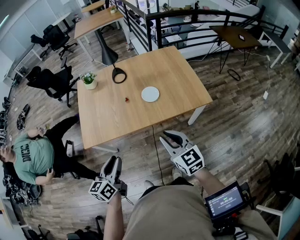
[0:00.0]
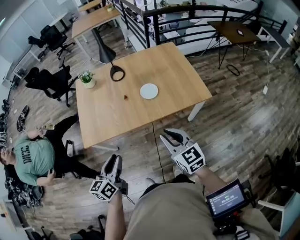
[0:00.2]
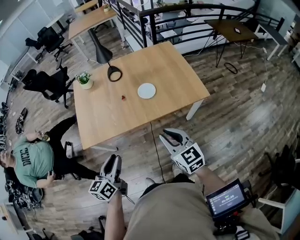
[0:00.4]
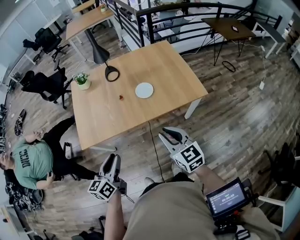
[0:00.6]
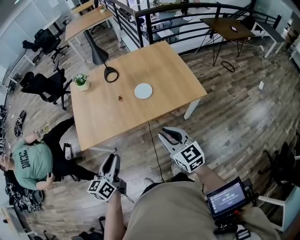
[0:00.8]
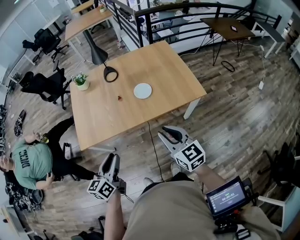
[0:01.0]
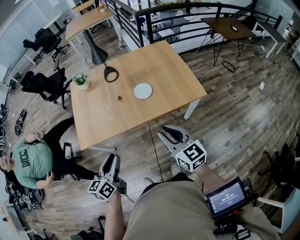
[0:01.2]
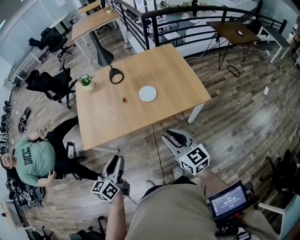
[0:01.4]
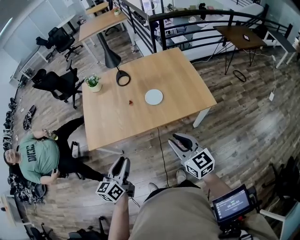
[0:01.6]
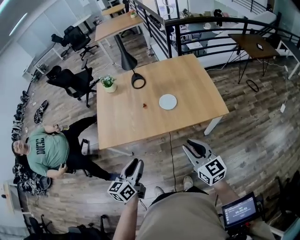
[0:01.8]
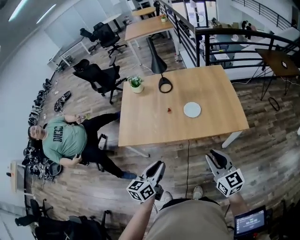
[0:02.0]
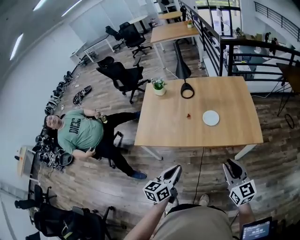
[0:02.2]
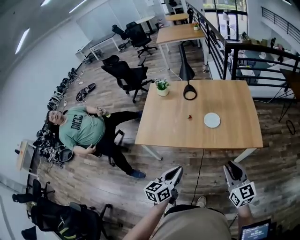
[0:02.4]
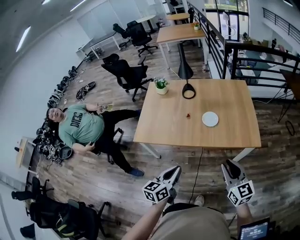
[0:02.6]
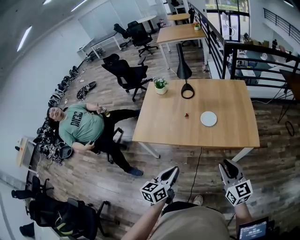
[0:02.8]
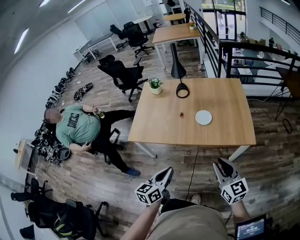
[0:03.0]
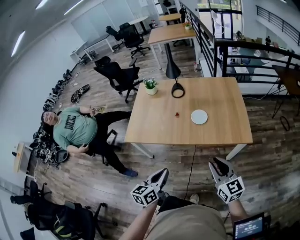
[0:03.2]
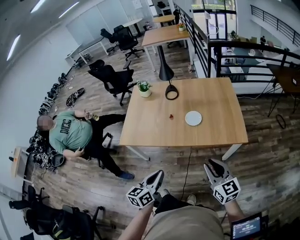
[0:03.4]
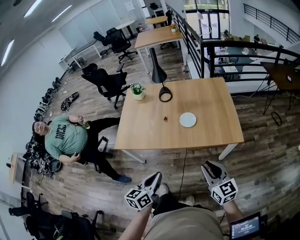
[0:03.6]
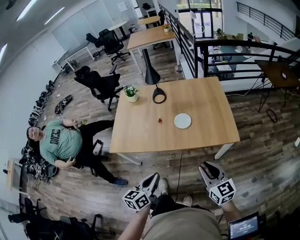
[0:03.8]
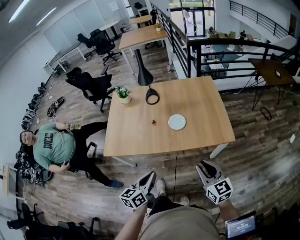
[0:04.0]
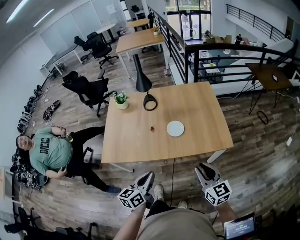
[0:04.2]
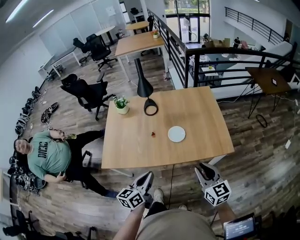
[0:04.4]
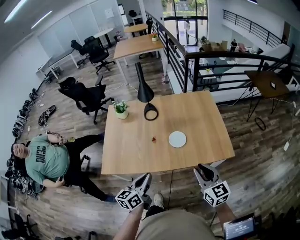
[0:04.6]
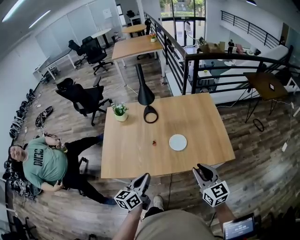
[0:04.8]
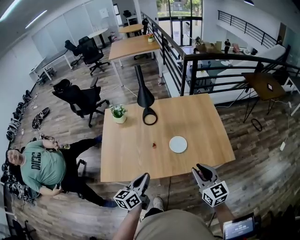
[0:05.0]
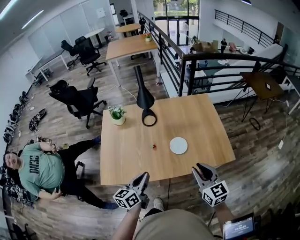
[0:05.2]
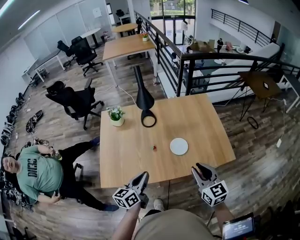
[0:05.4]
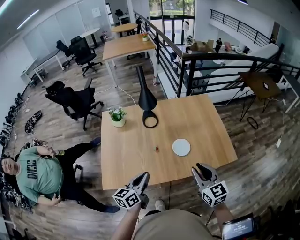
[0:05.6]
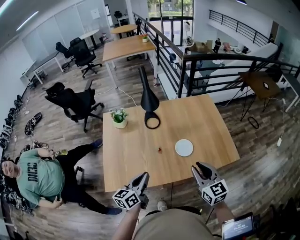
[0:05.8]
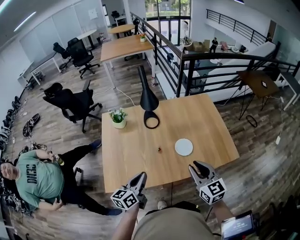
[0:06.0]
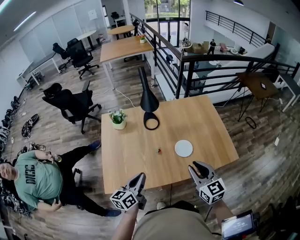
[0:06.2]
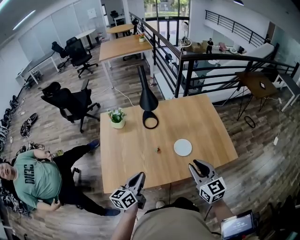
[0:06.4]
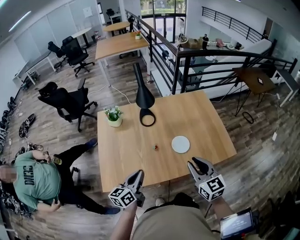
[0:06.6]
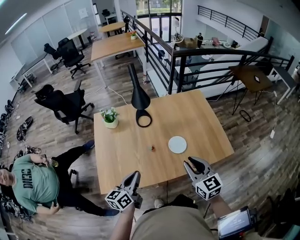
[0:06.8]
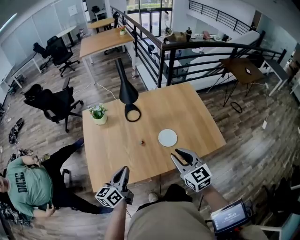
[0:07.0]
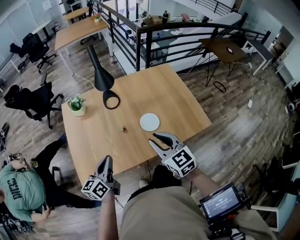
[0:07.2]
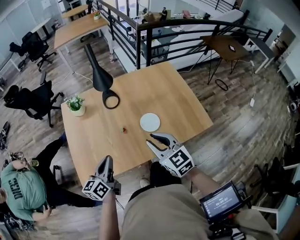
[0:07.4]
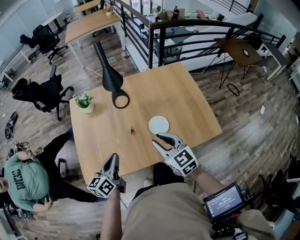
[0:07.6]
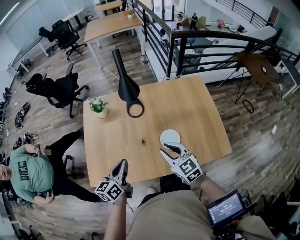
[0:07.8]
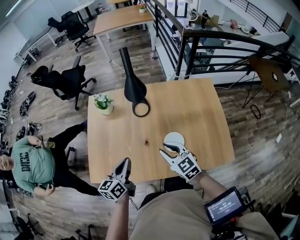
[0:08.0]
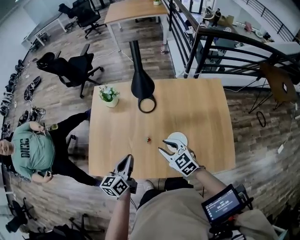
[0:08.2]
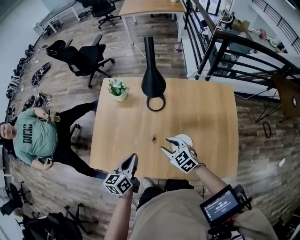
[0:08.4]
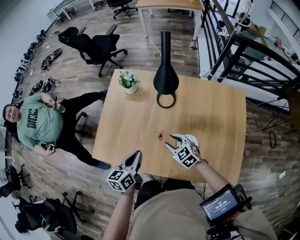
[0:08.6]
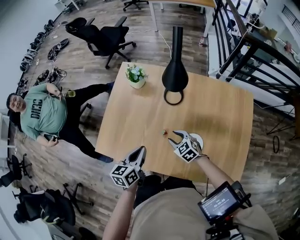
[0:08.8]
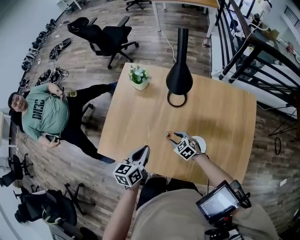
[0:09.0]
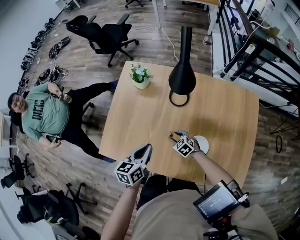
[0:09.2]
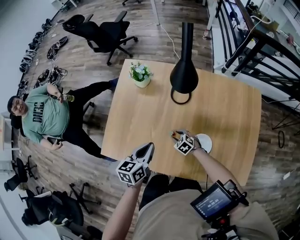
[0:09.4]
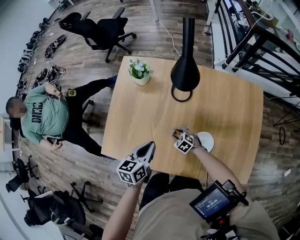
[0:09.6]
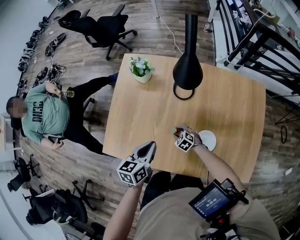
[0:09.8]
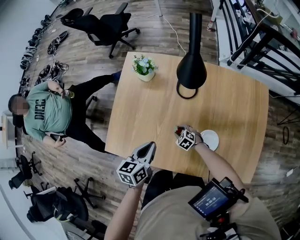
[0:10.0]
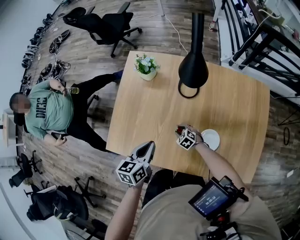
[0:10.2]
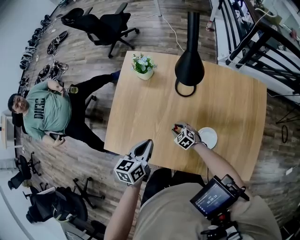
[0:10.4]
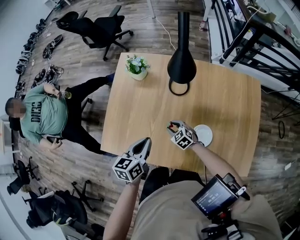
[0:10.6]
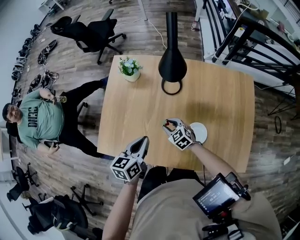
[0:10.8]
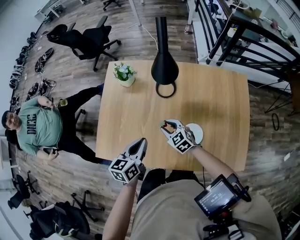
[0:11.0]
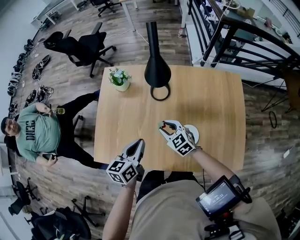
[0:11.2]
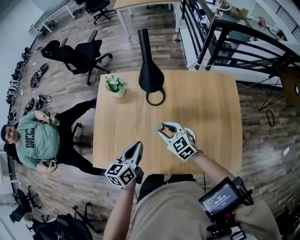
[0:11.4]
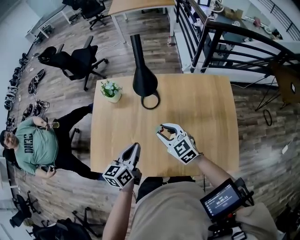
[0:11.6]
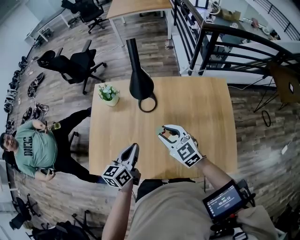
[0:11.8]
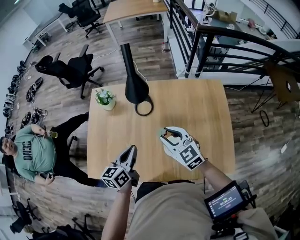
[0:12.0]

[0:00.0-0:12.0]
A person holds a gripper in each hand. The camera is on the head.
0:00.0 to 0:01.6: The left gripper ends up some 5 cm from where it was.
0:01.6 to 0:03.0: The left gripper heads to the right and backward, covering approximately 10 cm, and closes its fingers. Meanwhile the right gripper moves to the right, some 5 cm.
0:03.0 to 0:04.4: Both grippers move forward, approximately 10 cm.
0:04.4 to 0:06.0: The grippers both shift to the left and forward by some 25 cm.
0:06.0 to 0:07.6: The right gripper shifts some 10 cm forward and downward. Meanwhile the left gripper goes roughly 5 cm forward.
0:07.6 to 0:09.0: The right gripper goes approximately 30 cm downward, and swivels about 50 degrees, while the left gripper ends up roughly 10 cm from where it was, and changes its angle by some 30 degrees.
0:09.0 to 0:10.4: The right gripper is displaced downward by about 10 cm.
0:10.4 to 0:12.0: The right gripper shifts about 40 cm upward and to the right, and points its fingers roughly 30 degrees further upward; the left gripper is displaced to the right and upward by roughly 15 cm.

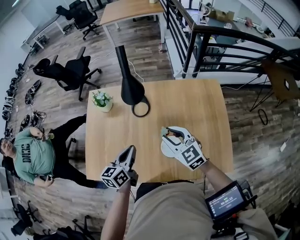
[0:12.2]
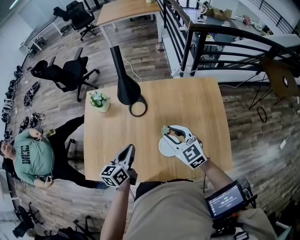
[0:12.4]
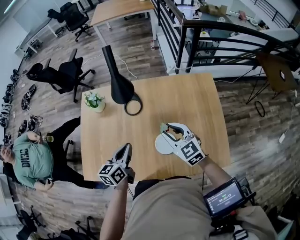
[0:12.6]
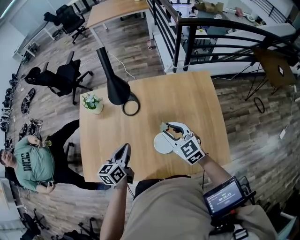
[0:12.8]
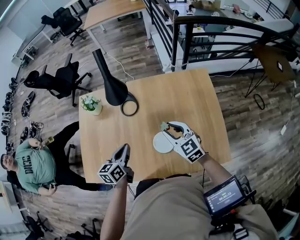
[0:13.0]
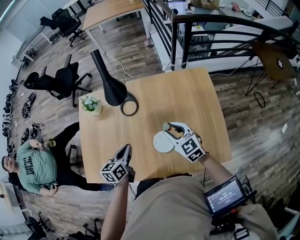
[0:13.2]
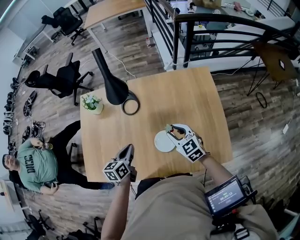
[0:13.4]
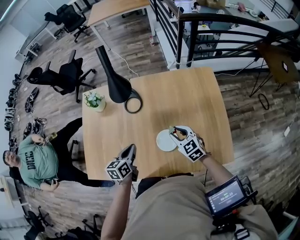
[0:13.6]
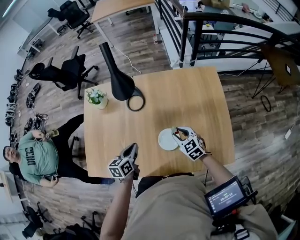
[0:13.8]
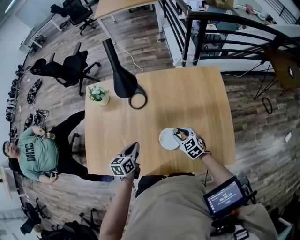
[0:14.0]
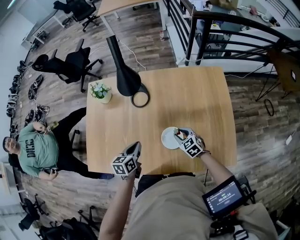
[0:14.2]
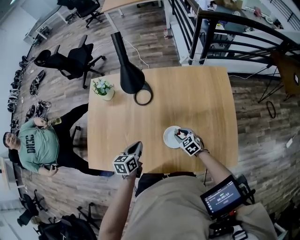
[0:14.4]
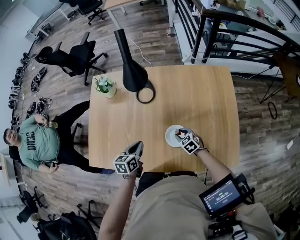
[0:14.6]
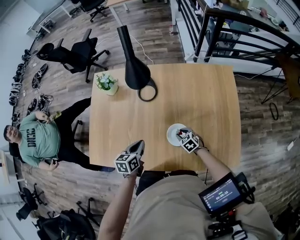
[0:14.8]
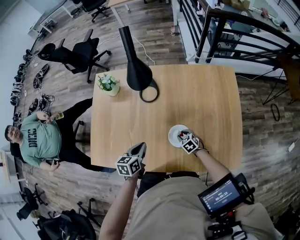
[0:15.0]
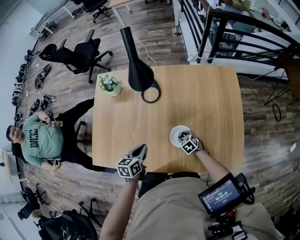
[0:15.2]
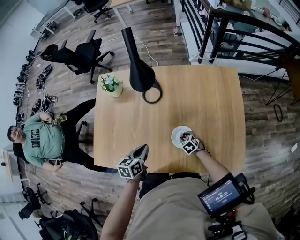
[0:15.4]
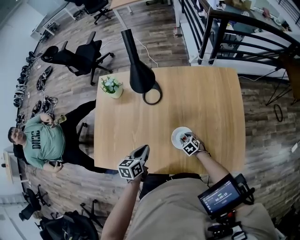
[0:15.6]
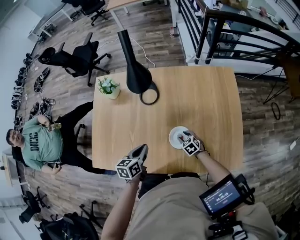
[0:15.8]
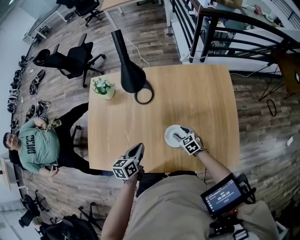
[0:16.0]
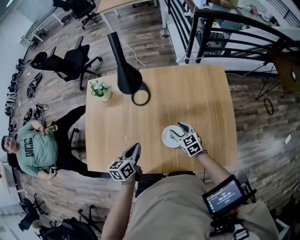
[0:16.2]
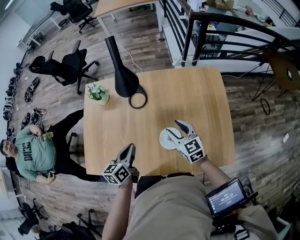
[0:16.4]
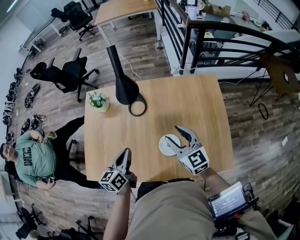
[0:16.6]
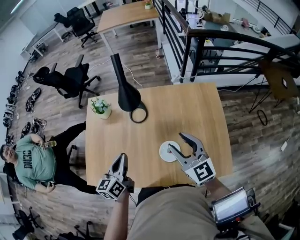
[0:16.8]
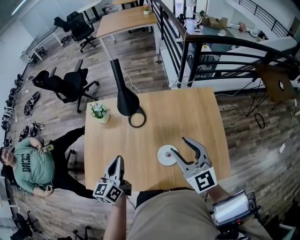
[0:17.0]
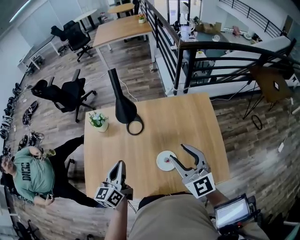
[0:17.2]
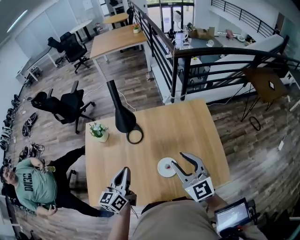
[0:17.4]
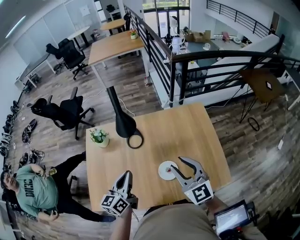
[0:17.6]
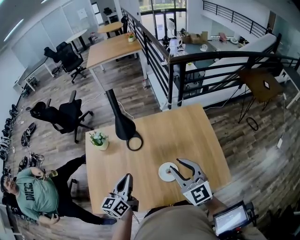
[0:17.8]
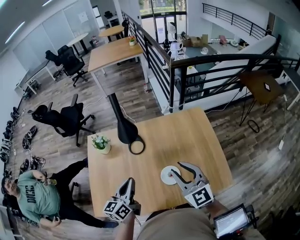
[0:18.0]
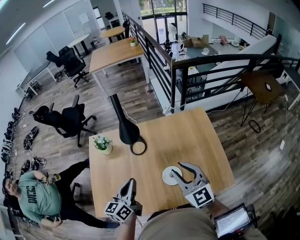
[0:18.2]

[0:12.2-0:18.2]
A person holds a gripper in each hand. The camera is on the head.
0:12.2 to 0:13.8: The right gripper moves downward and to the right, about 20 cm; the left gripper is displaced downward by about 10 cm.
0:13.8 to 0:15.2: The left gripper ends up about 5 cm from where it was; the right gripper travels downward by some 20 cm, and rotates approximately 20 degrees.
0:15.2 to 0:16.6: The right gripper goes roughly 35 cm upward, and points its fingers approximately 50 degrees further upward; the left gripper goes roughly 15 cm upward, and rotates some 20 degrees.
0:16.6 to 0:18.2: The left gripper shifts some 10 cm upward, while the right gripper goes about 15 cm upward and backward.

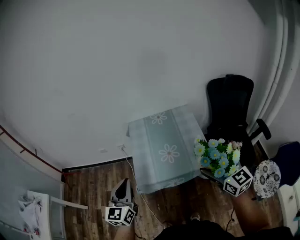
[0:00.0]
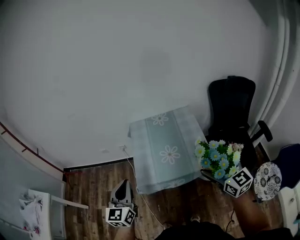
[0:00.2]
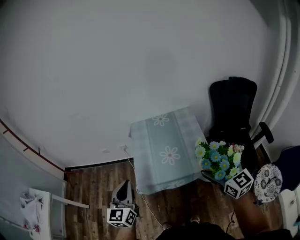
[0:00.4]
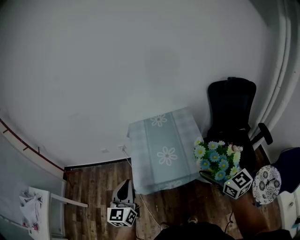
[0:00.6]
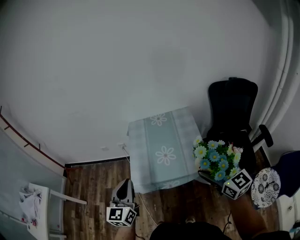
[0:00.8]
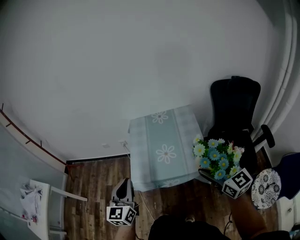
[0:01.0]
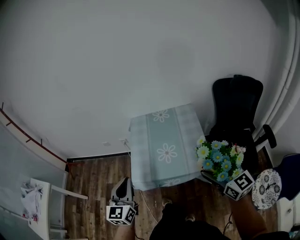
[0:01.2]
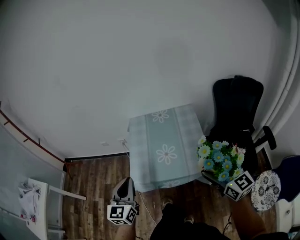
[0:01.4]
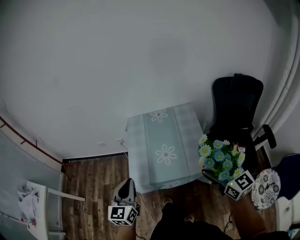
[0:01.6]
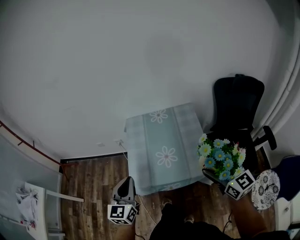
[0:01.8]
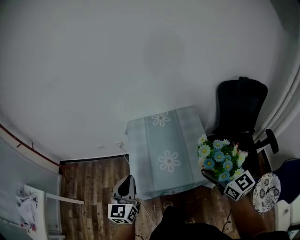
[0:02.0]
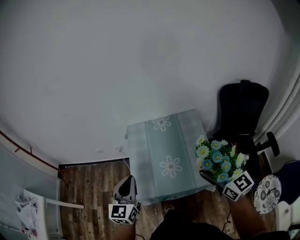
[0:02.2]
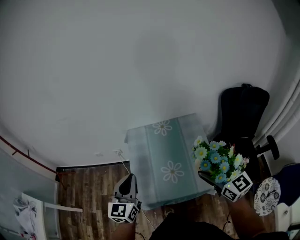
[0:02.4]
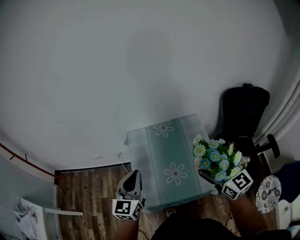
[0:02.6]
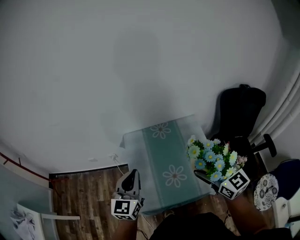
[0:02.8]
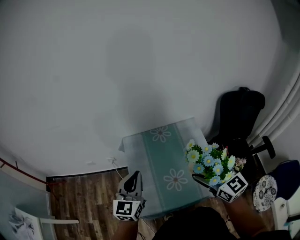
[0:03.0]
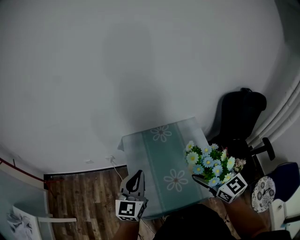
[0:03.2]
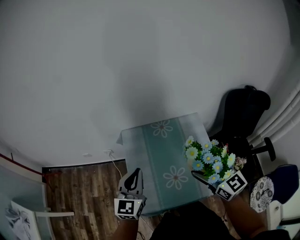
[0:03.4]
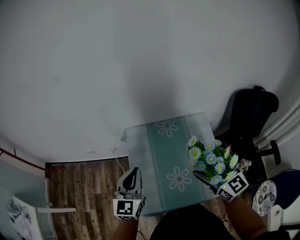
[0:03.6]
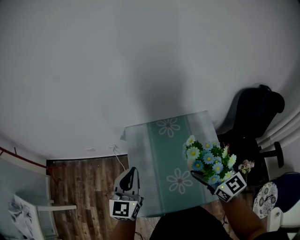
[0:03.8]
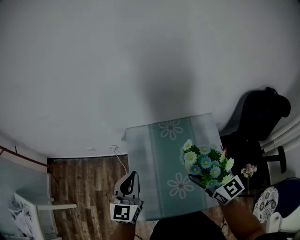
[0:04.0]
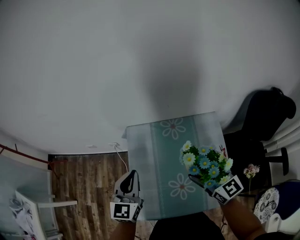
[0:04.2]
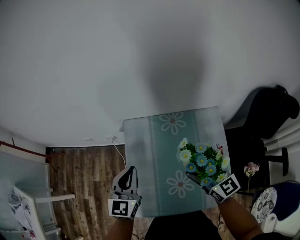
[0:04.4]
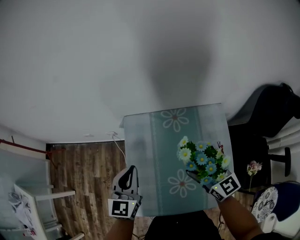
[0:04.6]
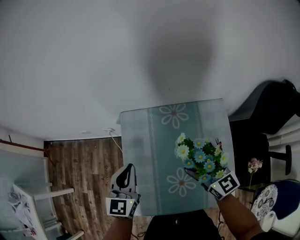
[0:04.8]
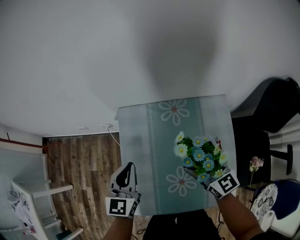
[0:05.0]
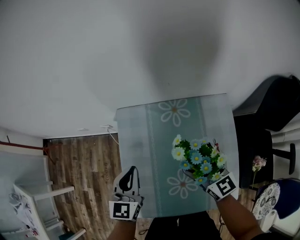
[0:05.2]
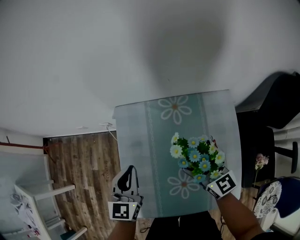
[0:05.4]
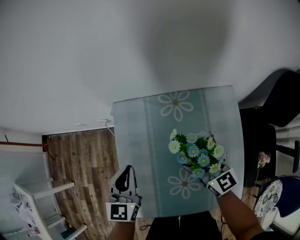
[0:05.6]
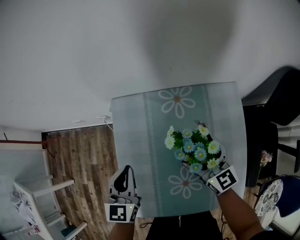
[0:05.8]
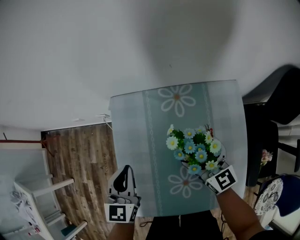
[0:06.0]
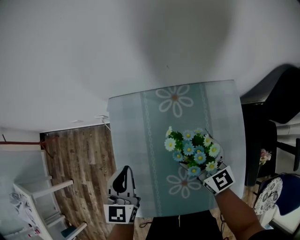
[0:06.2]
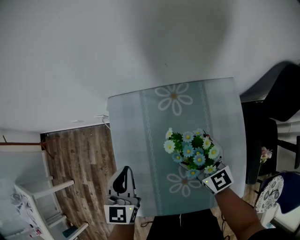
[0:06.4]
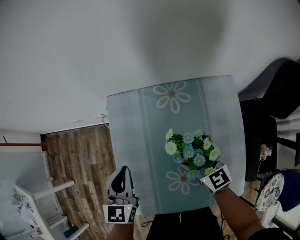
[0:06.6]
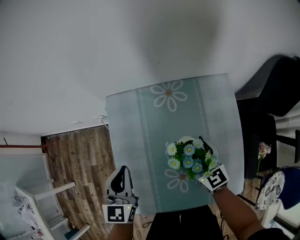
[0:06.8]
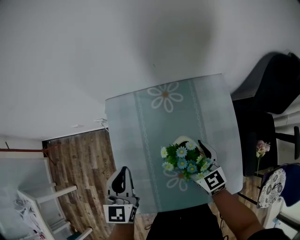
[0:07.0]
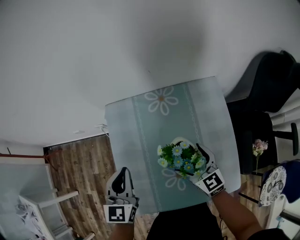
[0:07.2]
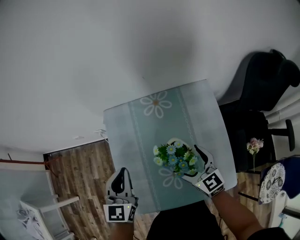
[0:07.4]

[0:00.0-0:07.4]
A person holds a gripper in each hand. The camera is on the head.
0:00.0 to 0:01.4: Both grippers travel together to the right, roughly 5 cm.
0:01.4 to 0:03.0: The right gripper shifts roughly 25 cm forward and to the left. The left gripper shifts approximately 25 cm forward.
0:03.0 to 0:04.4: The left gripper heads downward and forward, covering some 15 cm; the right gripper goes some 20 cm forward and downward.
0:04.4 to 0:06.0: Both grippers travel together downward, about 15 cm.
0:06.0 to 0:07.4: The left gripper shifts roughly 5 cm upward. The right gripper moves backward, roughly 10 cm.
